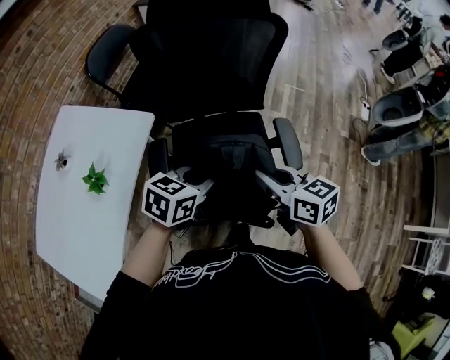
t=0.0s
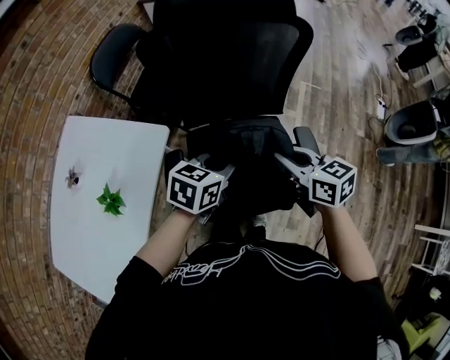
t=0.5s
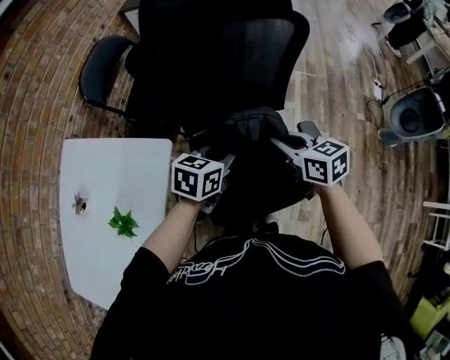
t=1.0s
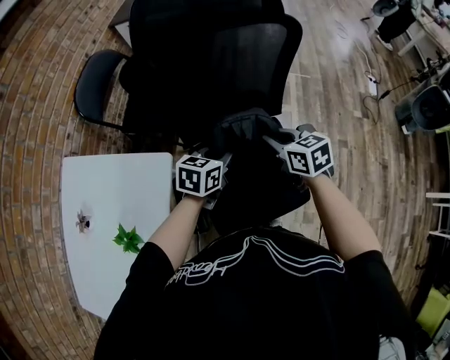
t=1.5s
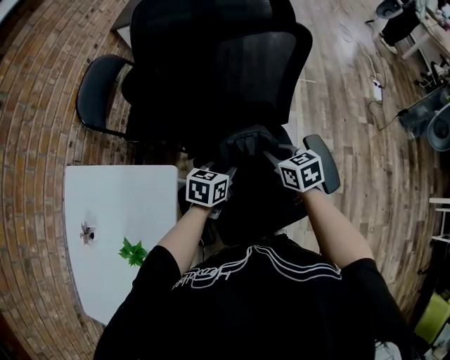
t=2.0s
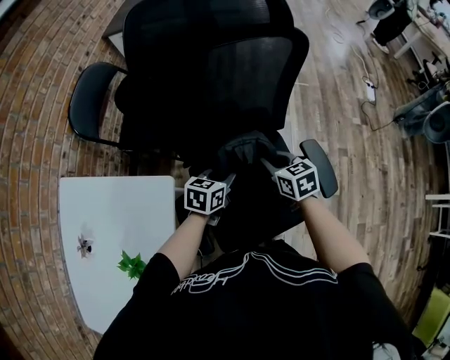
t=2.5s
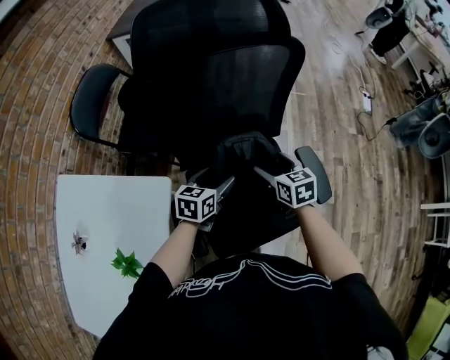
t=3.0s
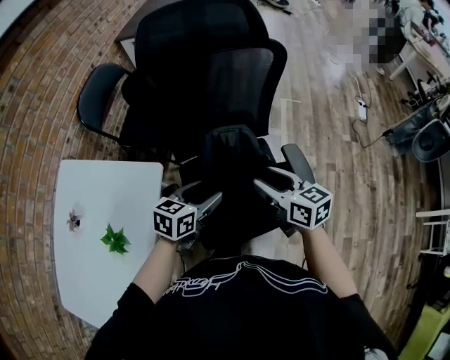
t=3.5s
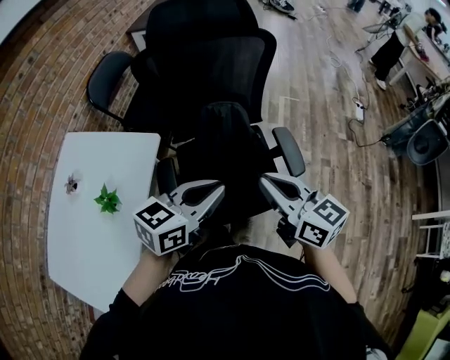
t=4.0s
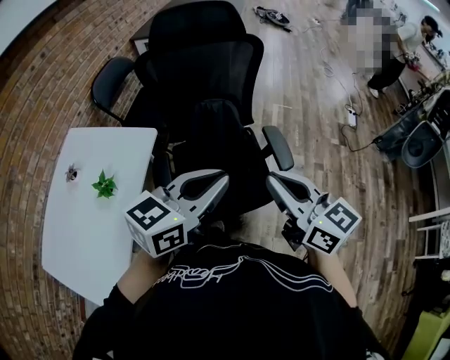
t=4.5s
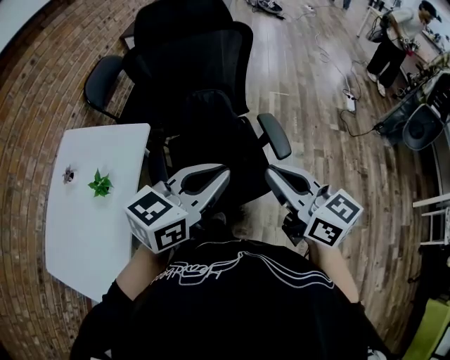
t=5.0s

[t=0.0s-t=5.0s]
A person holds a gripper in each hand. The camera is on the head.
t=0.0s to t=2.5s: The grippers both shift forward and downward by approximately 25 cm. The right gripper turns by approximately 20 degrees.
t=2.5s to t=5.0s: The right gripper shifts approximately 40 cm backward, upward and to the right, tips its fingers upward by some 40 degrees, and opens, then closes once more, while the left gripper goes about 40 cm upward, backward and to the right, changes its angle by approximately 30 degrees, and opens, then closes once more.

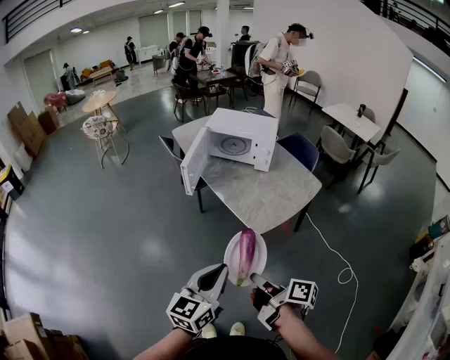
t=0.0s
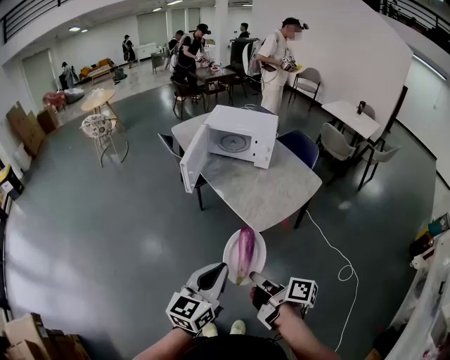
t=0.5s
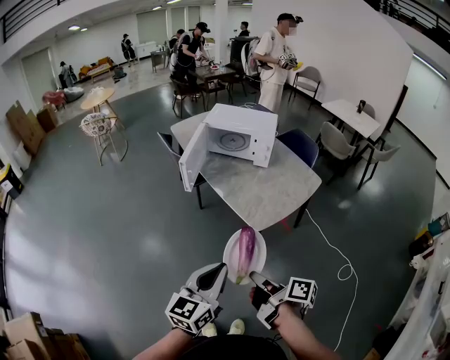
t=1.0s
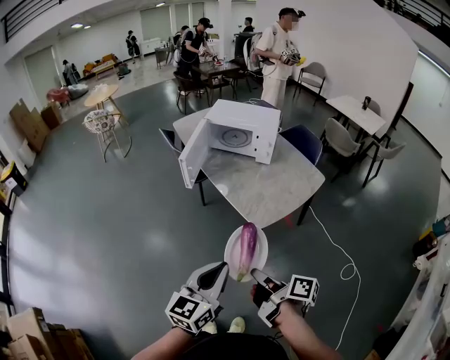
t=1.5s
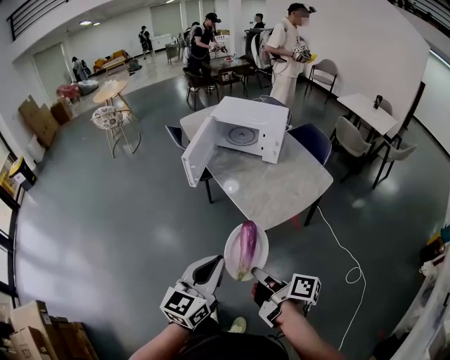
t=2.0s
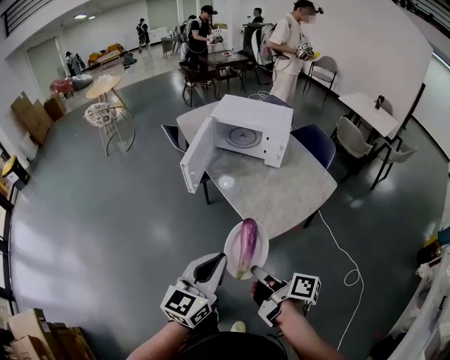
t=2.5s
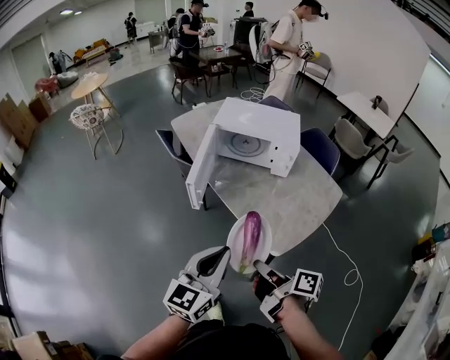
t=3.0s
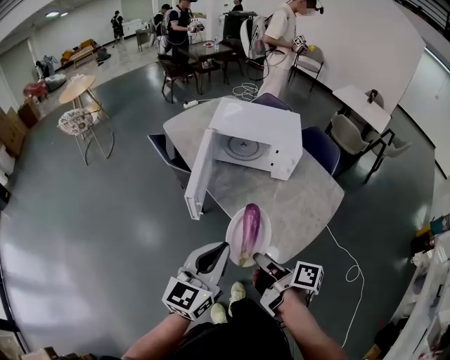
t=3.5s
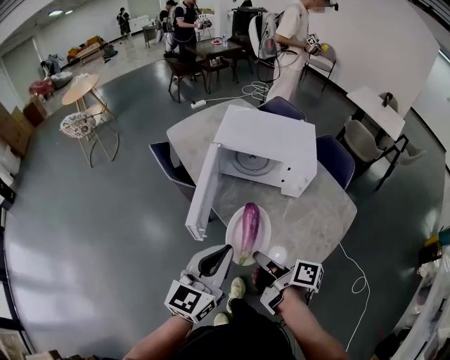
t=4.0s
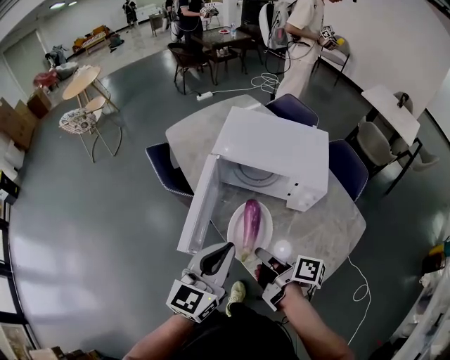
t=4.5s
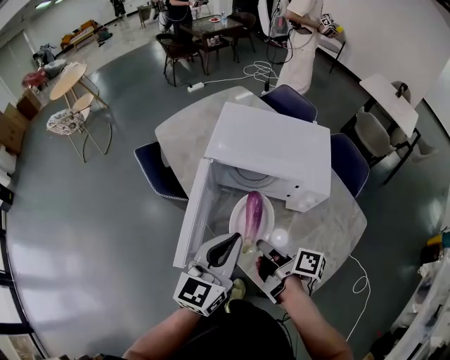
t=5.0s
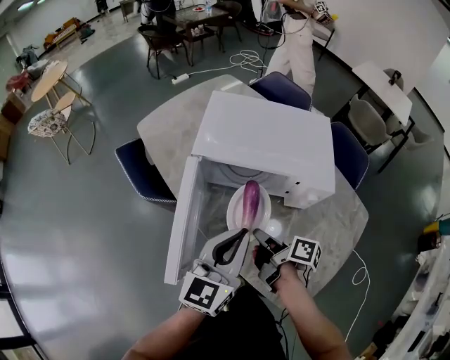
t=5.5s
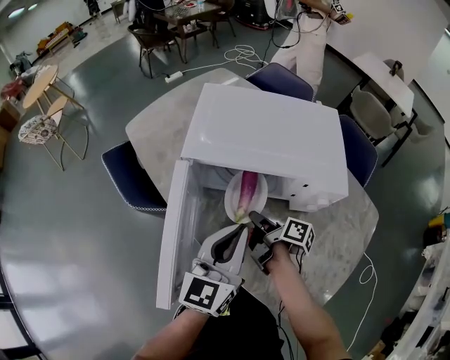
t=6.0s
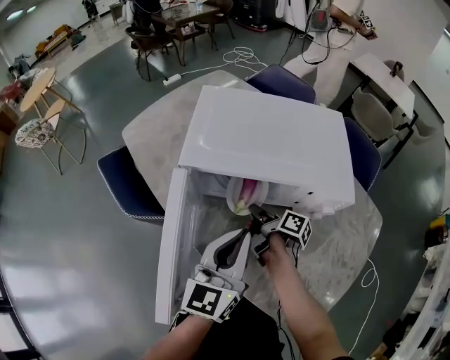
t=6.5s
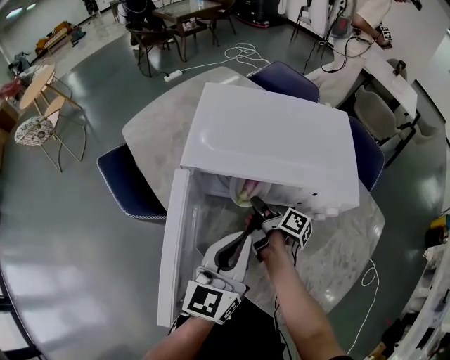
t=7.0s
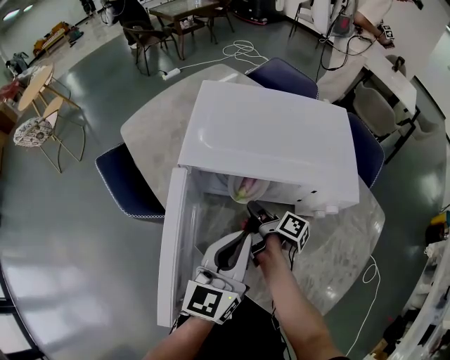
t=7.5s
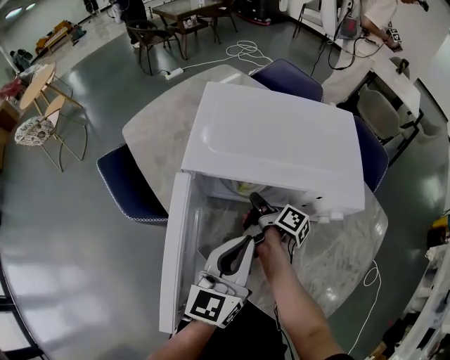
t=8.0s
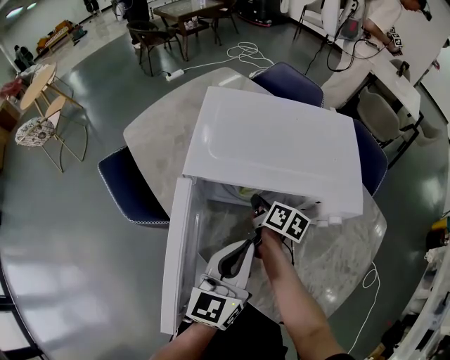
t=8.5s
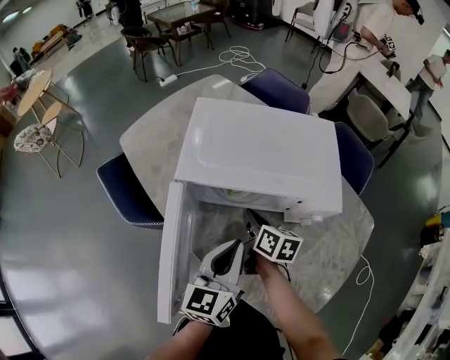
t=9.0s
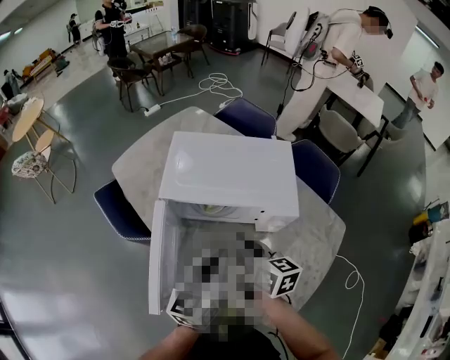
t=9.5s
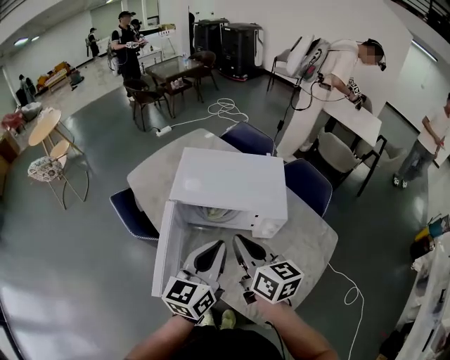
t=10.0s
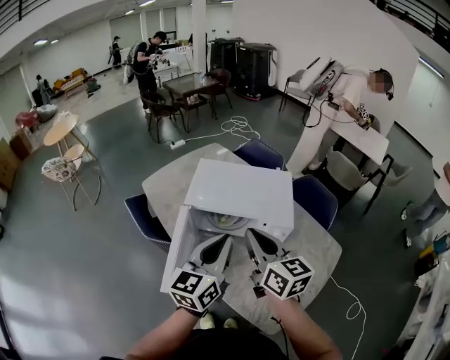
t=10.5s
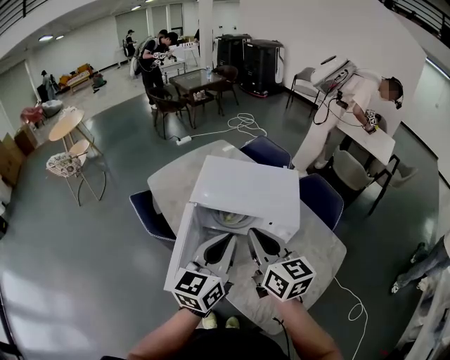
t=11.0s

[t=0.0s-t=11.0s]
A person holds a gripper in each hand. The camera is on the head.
t=2.0s to t=3.5s: The left gripper ends up roughly 30 cm from where it was.
t=3.5s to t=5.5s: The left gripper changes place by some 35 cm.
t=5.5s to t=7.5s: The left gripper shifts roughly 10 cm downward.
t=9.0s to t=11.0s: The left gripper goes roughly 20 cm upward.

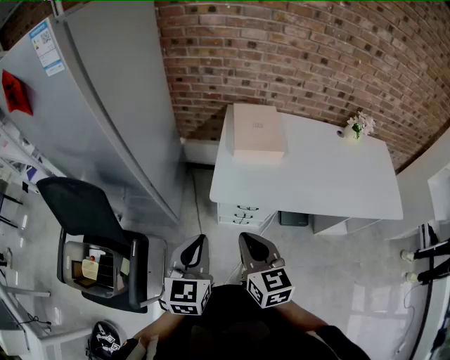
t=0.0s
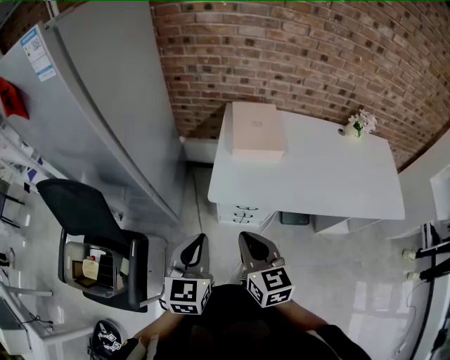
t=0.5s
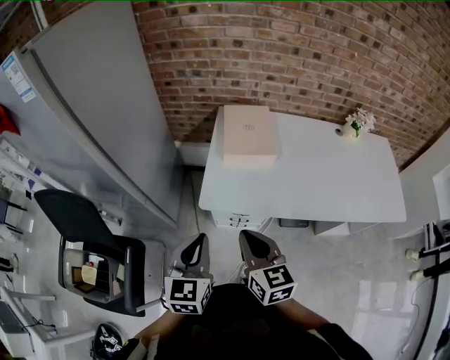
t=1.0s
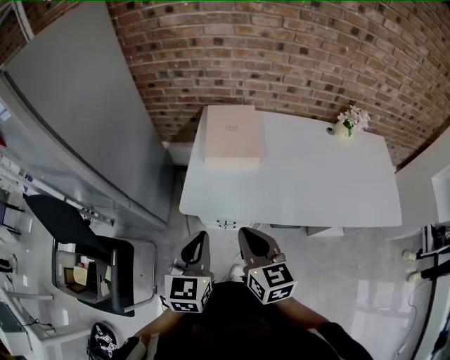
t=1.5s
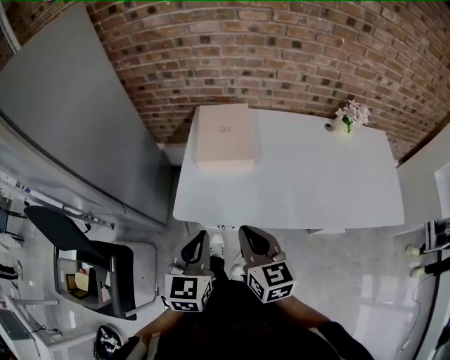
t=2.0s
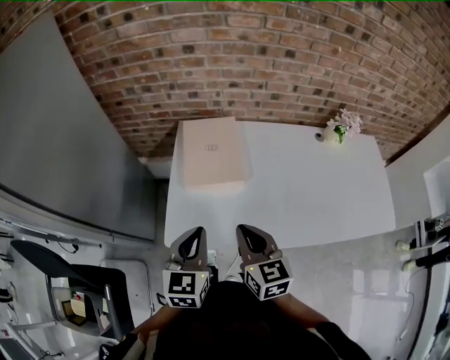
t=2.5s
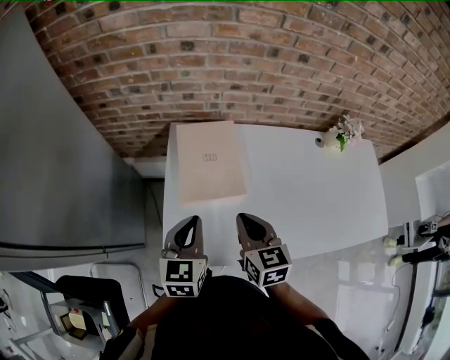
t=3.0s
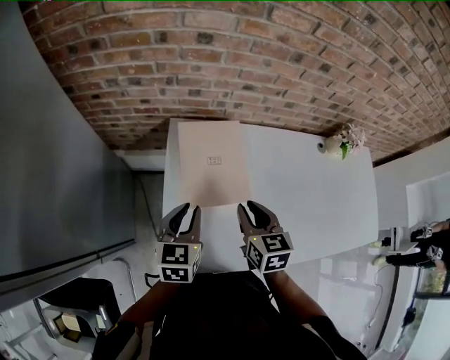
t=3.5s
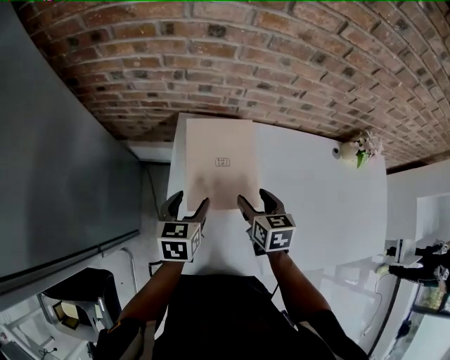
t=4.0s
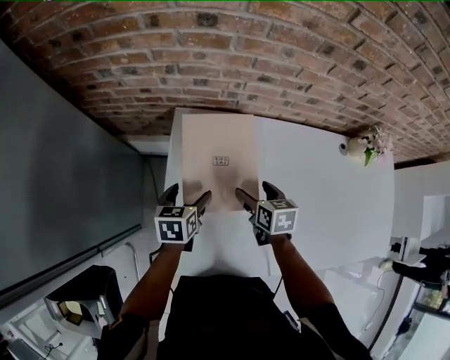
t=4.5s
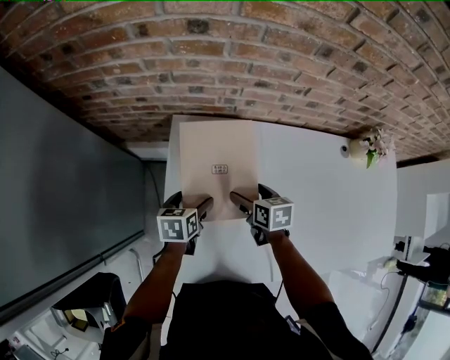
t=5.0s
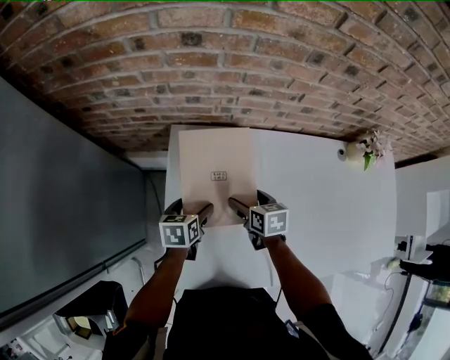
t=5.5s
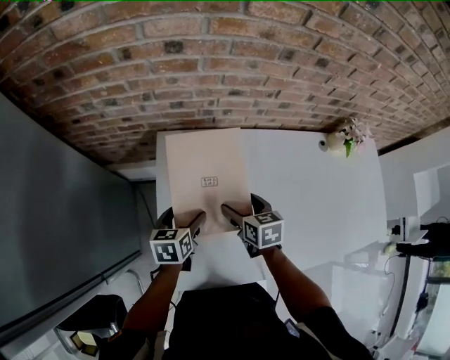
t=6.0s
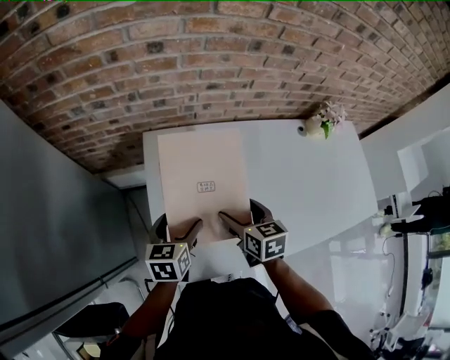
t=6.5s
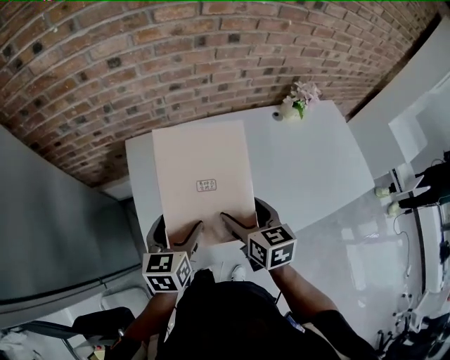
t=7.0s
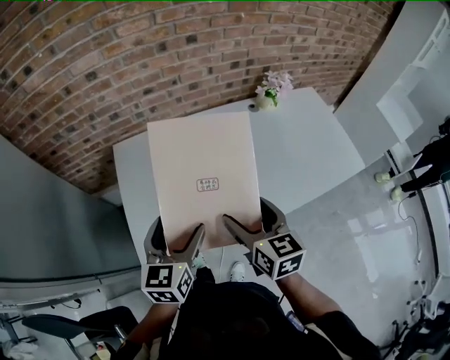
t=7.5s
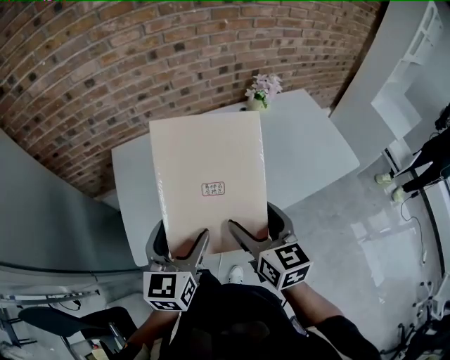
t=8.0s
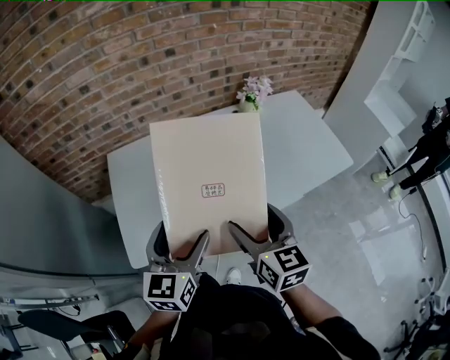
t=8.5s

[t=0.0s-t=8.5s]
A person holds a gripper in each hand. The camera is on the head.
t=0.0s to t=2.0s: The two grippers go some 20 cm to the right and forward.
t=2.0s to t=4.0s: The two grippers go about 35 cm forward and downward. The left gripper turns by approximately 20 degrees, and opens its fingers, while the right gripper turns by some 20 degrees, and opens up.
t=4.0s to t=6.5s: The right gripper shifts approximately 5 cm backward, and reaches roughly 10 cm downward, then returns, while the left gripper travels downward and back again, about 10 cm each way.
t=6.5s to t=8.5s: The right gripper goes some 35 cm to the right, backward and upward, and changes its angle by about 30 degrees. Meanwhile the left gripper goes some 35 cm to the right, upward and backward, and changes its angle by about 30 degrees.

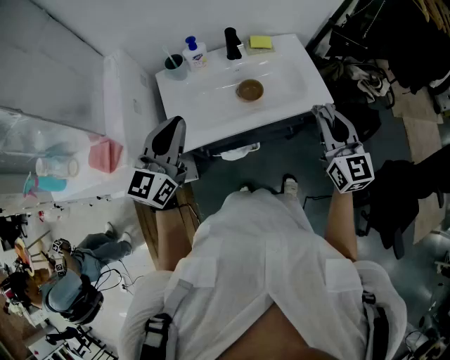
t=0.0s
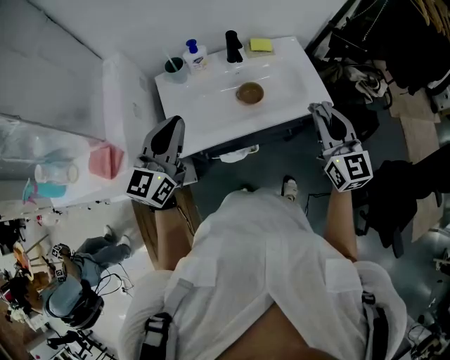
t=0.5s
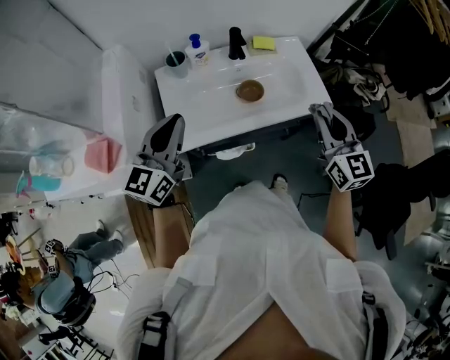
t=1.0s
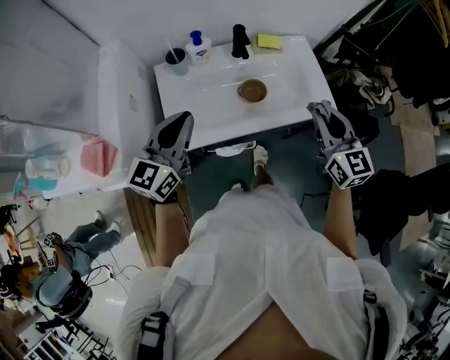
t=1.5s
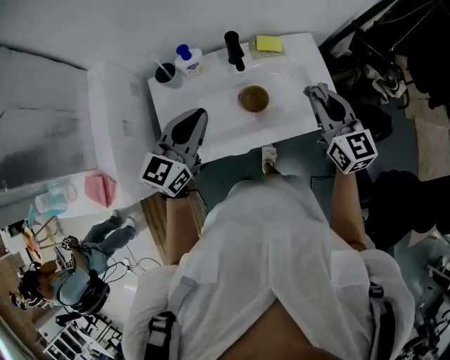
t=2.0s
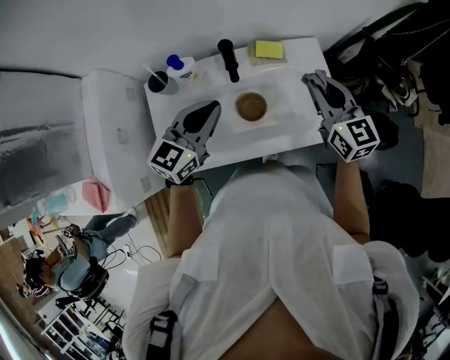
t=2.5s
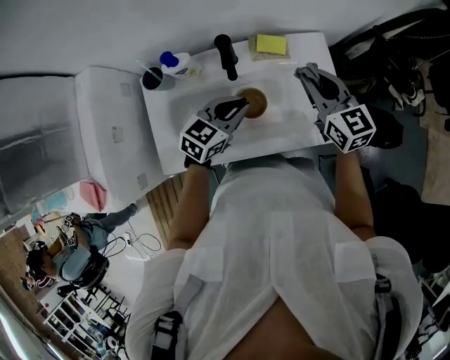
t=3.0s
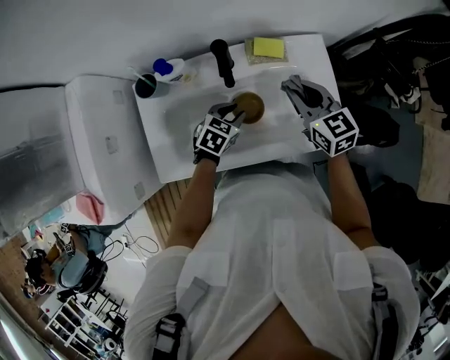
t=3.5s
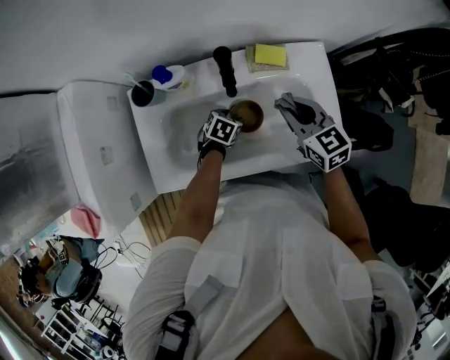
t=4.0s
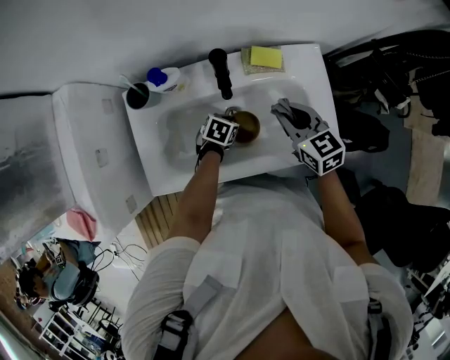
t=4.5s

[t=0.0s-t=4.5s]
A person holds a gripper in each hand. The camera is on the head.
t=0.0s to t=2.0s: The left gripper heads forward, downward and to the right, covering about 15 cm. The right gripper is displaced forward by roughly 20 cm.
t=2.0s to t=4.5s: The right gripper moves downward and forward, some 20 cm, and changes its angle by roughly 30 degrees. The left gripper moves downward, about 35 cm, tilts its fingers about 50 degrees downward, and opens and closes again.
